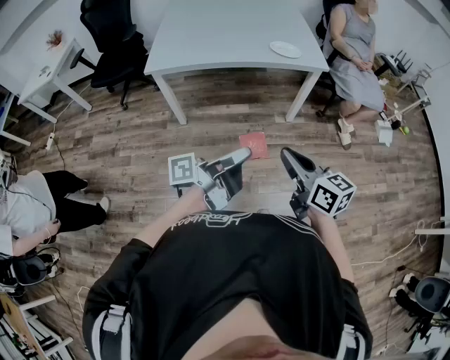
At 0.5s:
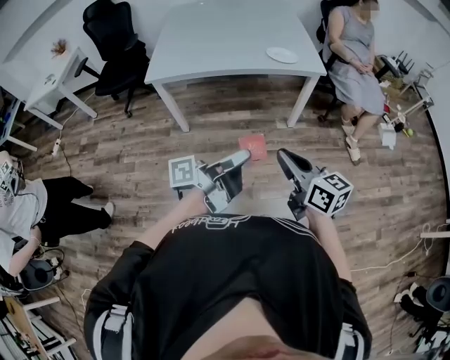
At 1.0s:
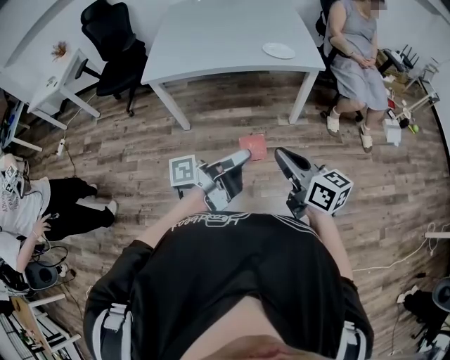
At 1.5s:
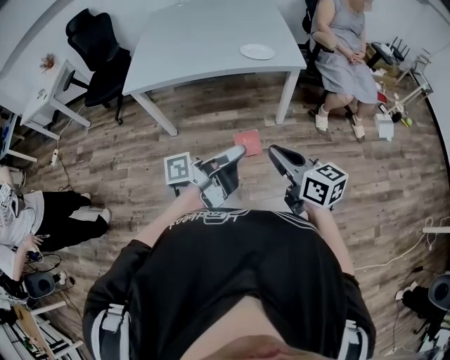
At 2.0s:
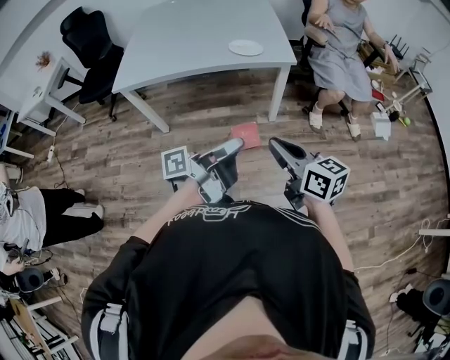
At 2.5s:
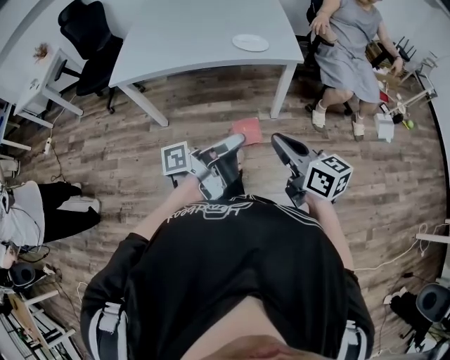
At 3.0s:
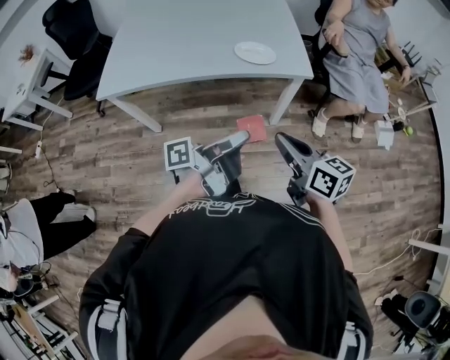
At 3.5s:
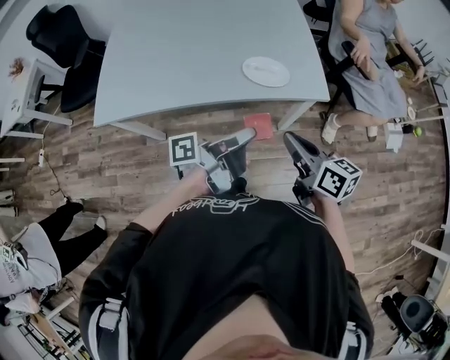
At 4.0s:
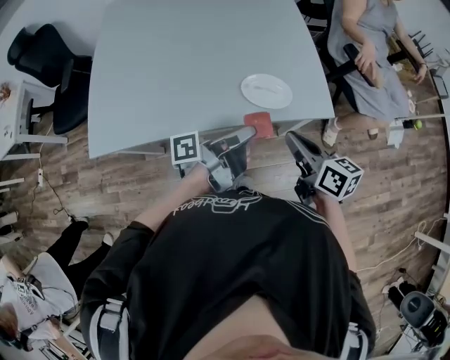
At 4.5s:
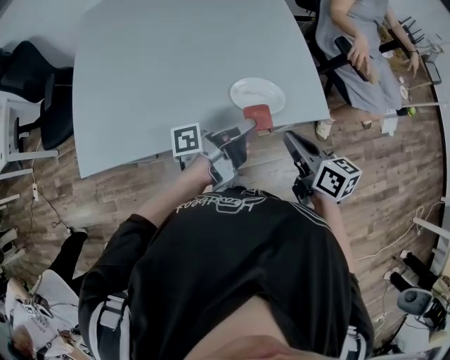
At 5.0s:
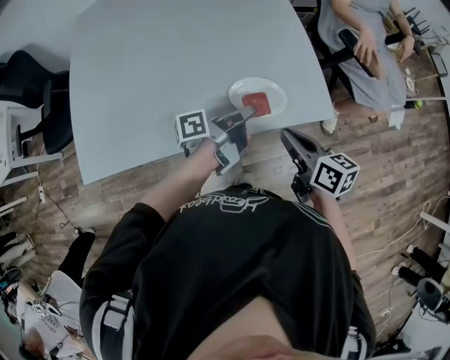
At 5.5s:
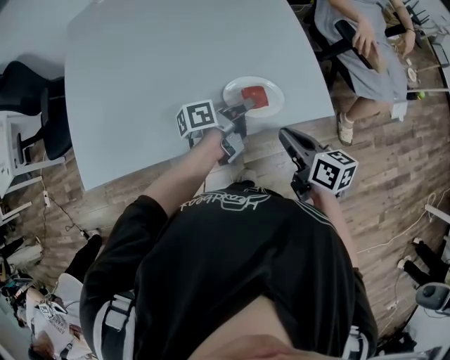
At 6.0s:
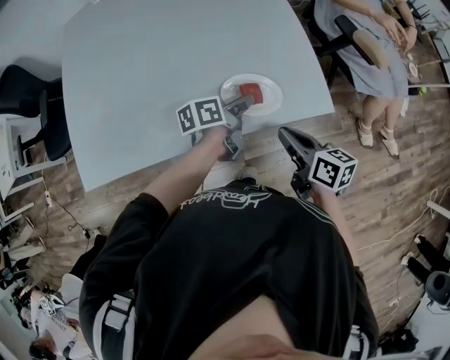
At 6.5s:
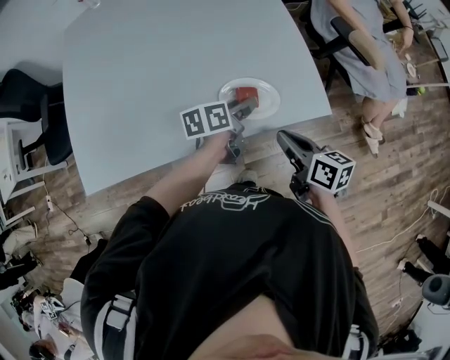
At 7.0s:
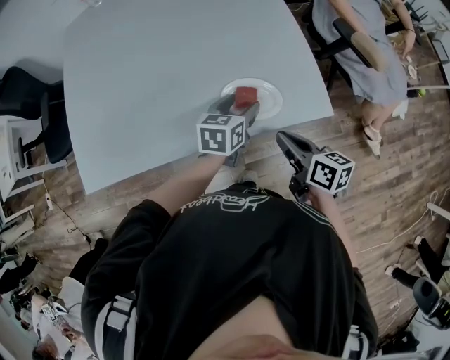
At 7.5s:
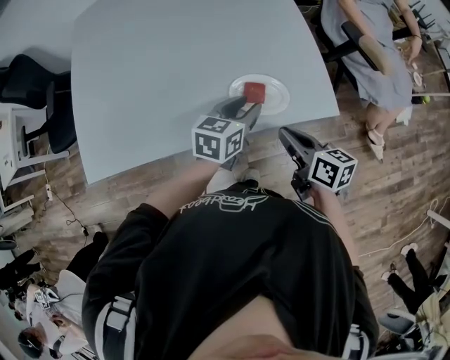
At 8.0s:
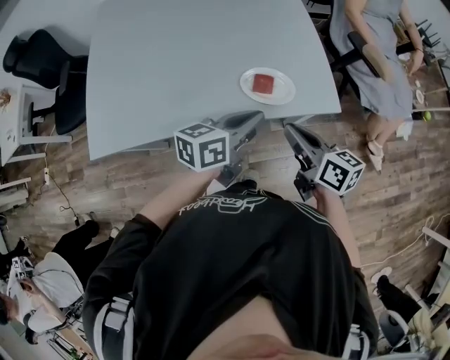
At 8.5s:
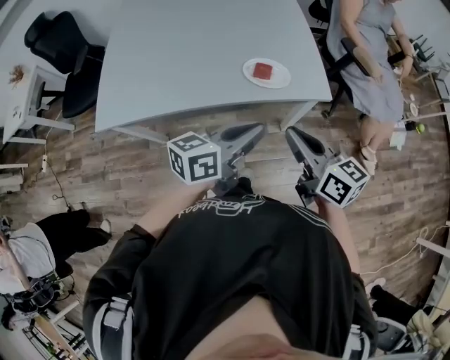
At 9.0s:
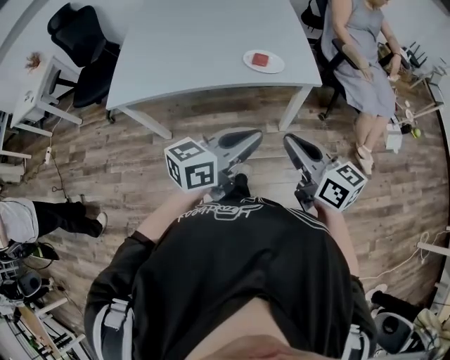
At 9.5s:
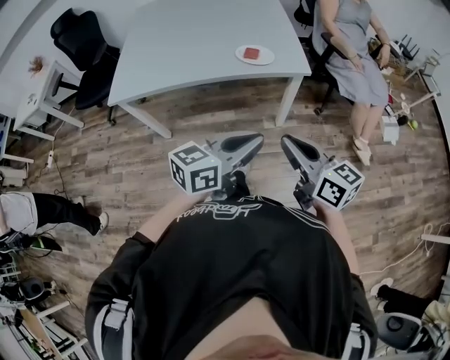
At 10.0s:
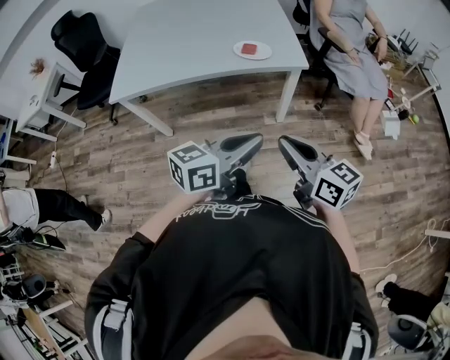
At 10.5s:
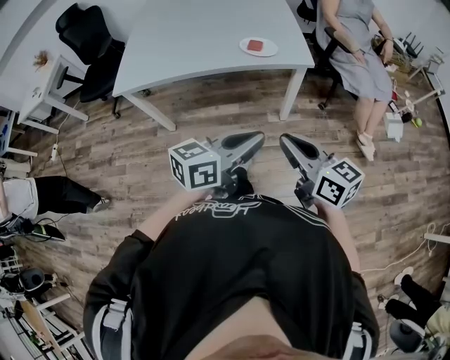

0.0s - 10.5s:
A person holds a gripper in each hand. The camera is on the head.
0.0s - 2.0s: Both grippers travel together to the right and forward, roughly 20 cm.
2.0s - 4.0s: The two grippers travel together, forward, roughly 40 cm.
4.0s - 6.5s: The right gripper shifts roughly 10 cm downward and forward. Meanwhile the left gripper goes roughly 20 cm forward and downward, points its fingers some 40 degrees further downward, and opens its fingers.
6.5s - 8.5s: The grippers both shift backward and upward by about 25 cm. The left gripper turns by about 30 degrees, and closes up. Meanwhile the right gripper turns by roughly 30 degrees.
8.5s - 10.5s: The two grippers go approximately 25 cm backward.

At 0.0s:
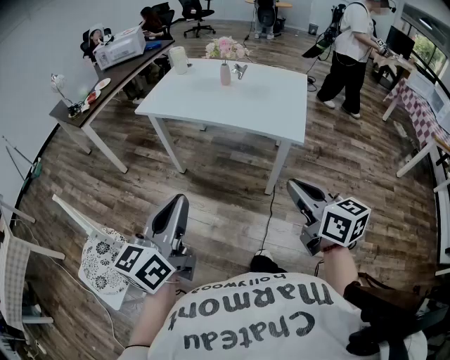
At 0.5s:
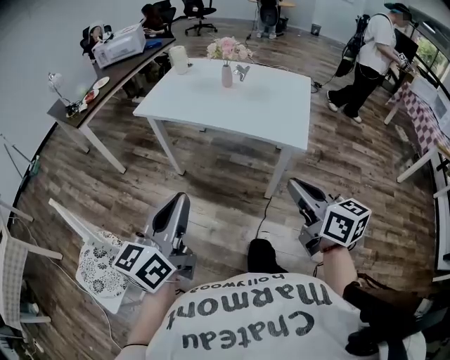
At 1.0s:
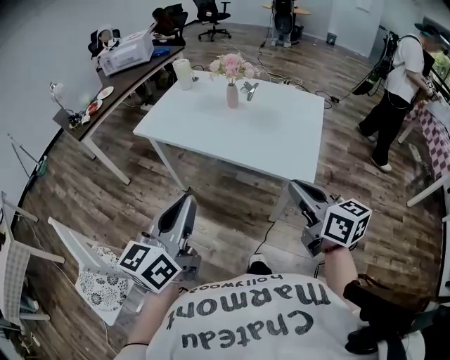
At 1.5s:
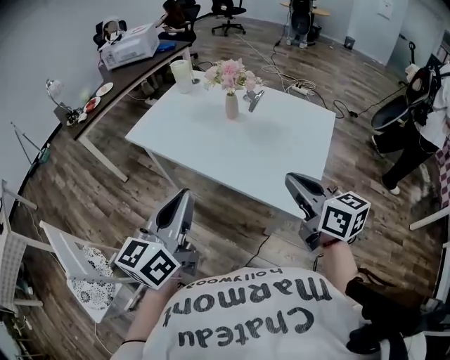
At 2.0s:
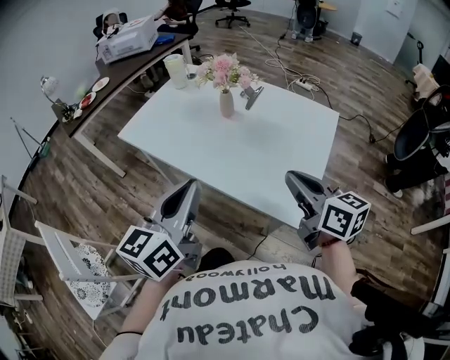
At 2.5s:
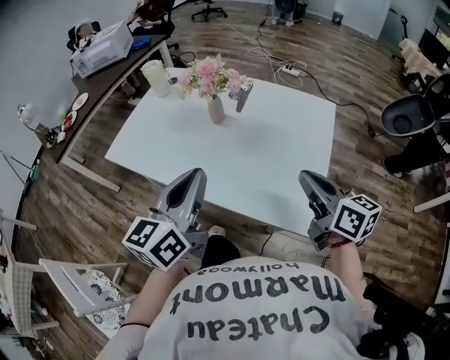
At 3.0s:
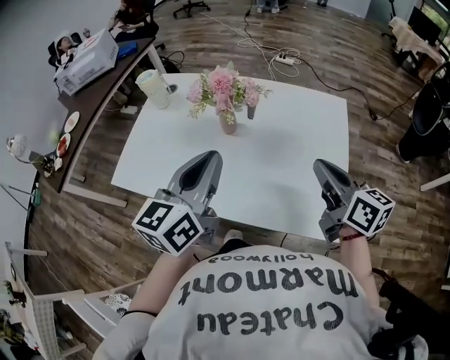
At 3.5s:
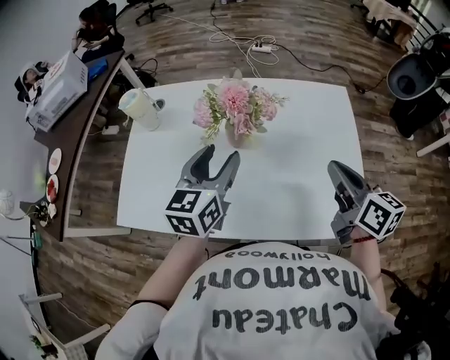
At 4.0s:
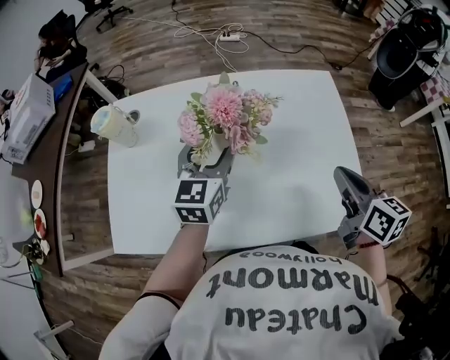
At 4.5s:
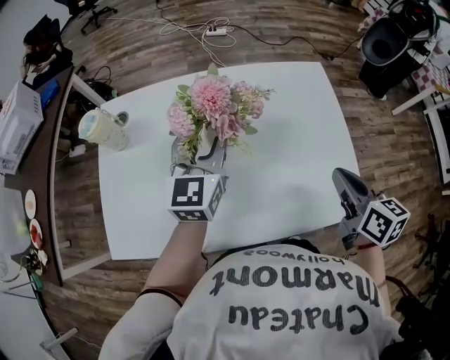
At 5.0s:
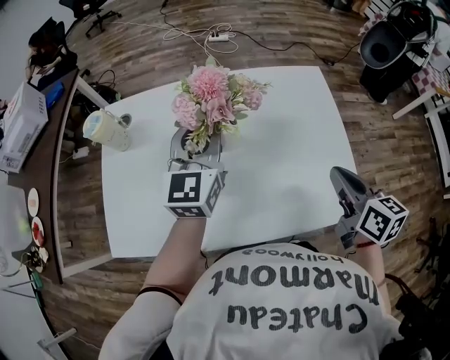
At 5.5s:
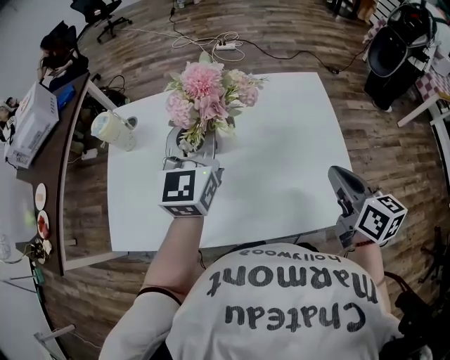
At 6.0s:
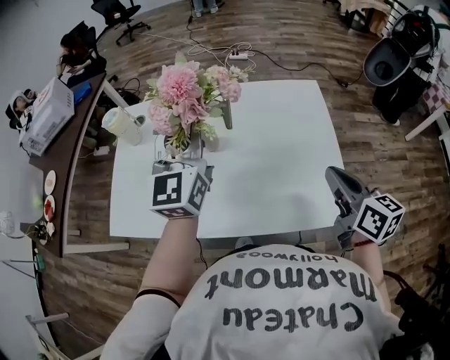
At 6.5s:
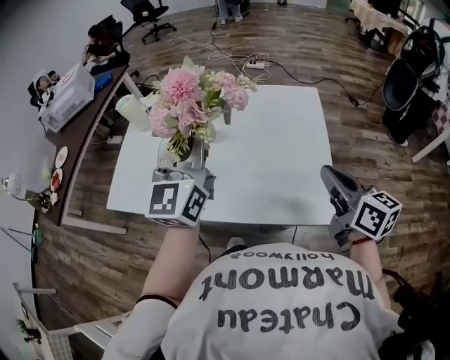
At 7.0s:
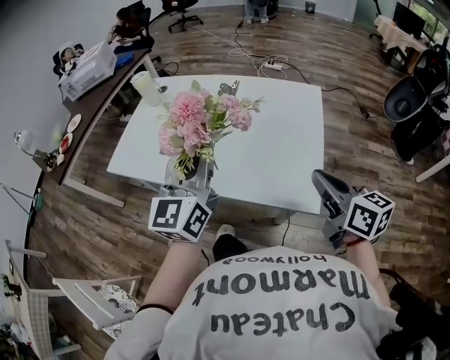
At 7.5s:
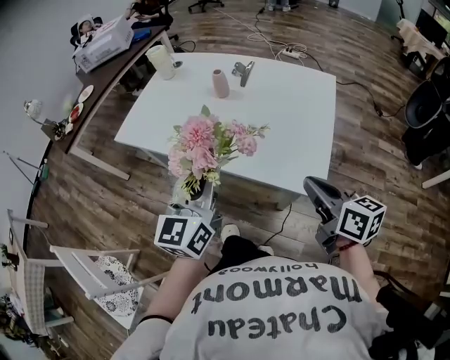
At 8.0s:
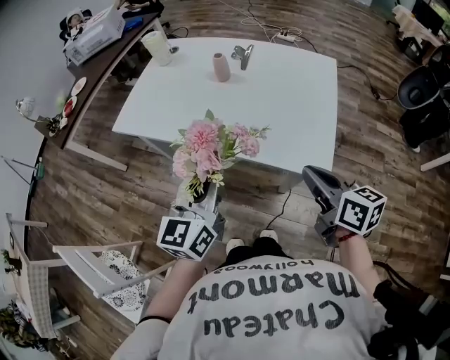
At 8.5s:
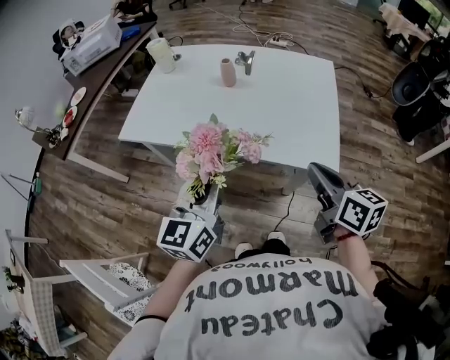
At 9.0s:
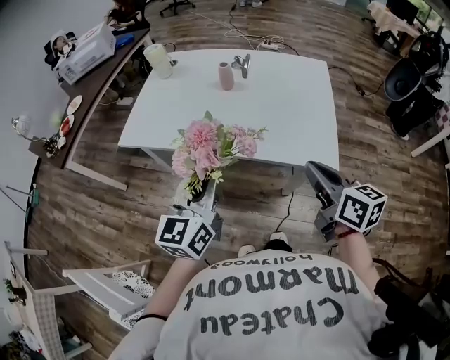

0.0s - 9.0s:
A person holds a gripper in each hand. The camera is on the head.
0.0s - 2.0s: The right gripper heads forward, covering some 35 cm. The left gripper travels forward and to the right by roughly 35 cm.
2.0s - 4.5s: The left gripper shifts by roughly 40 cm, changes its angle by roughly 30 degrees, and opens its fingers. The right gripper shifts by about 15 cm, and changes its angle by about 50 degrees.
4.5s - 7.0s: The right gripper changes place by about 15 cm, and changes its angle by approximately 30 degrees; the left gripper changes place by approximately 30 cm, rotates approximately 20 degrees, and closes its fingers.
7.0s - 9.0s: The right gripper moves to the left and backward, approximately 15 cm, while the left gripper heads to the left, backward and downward, covering roughly 20 cm.

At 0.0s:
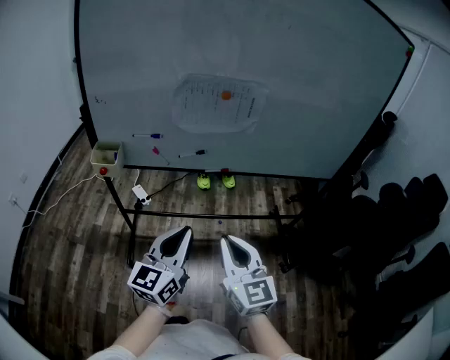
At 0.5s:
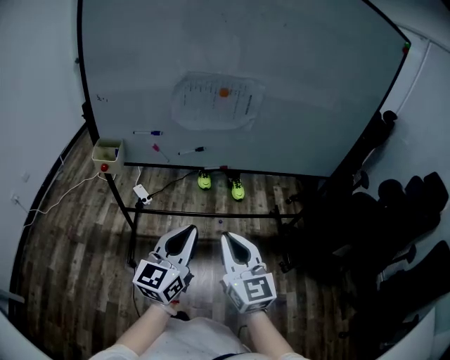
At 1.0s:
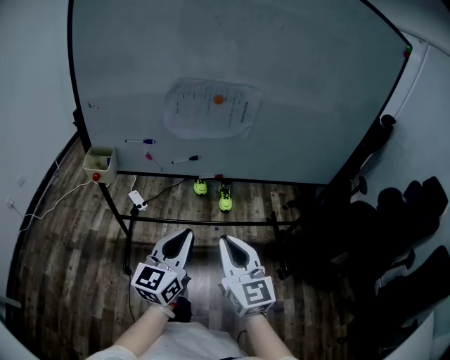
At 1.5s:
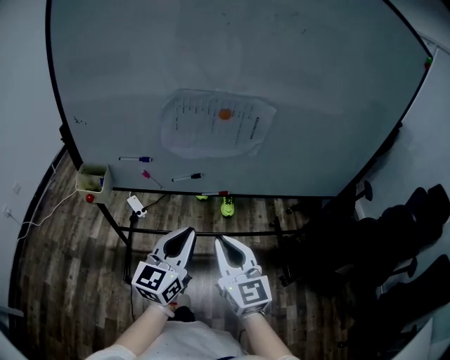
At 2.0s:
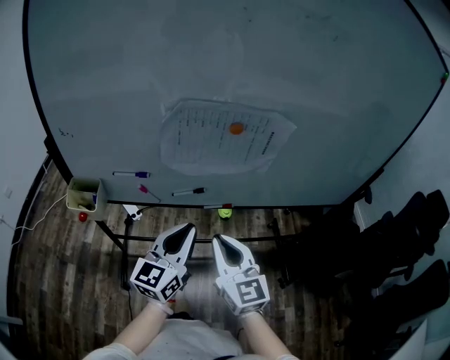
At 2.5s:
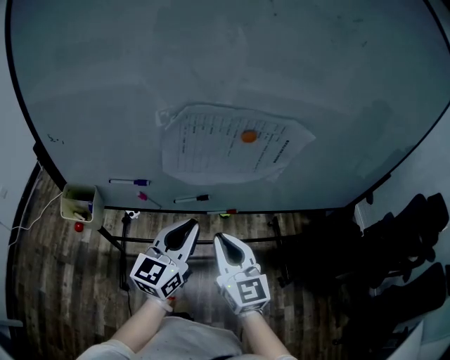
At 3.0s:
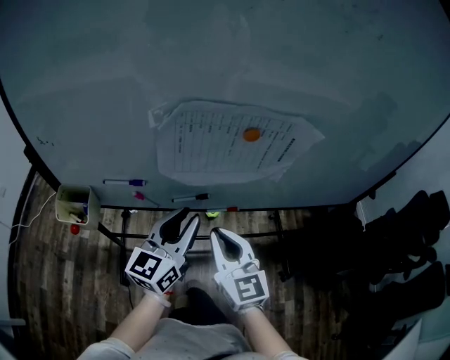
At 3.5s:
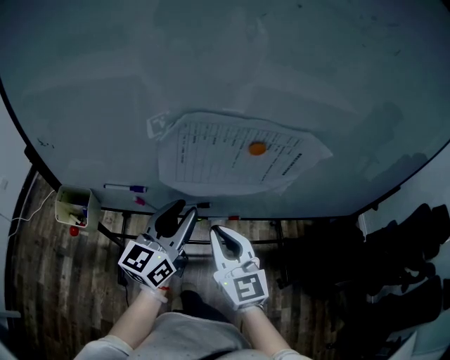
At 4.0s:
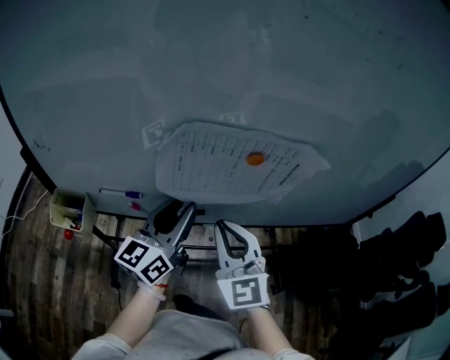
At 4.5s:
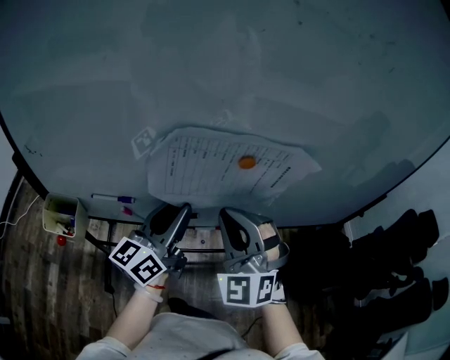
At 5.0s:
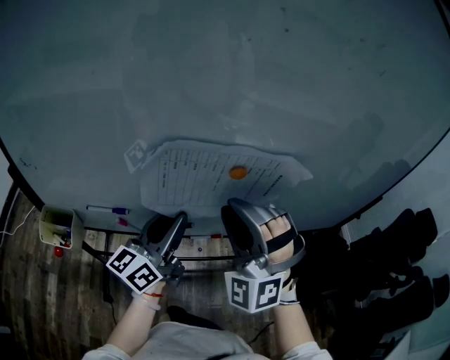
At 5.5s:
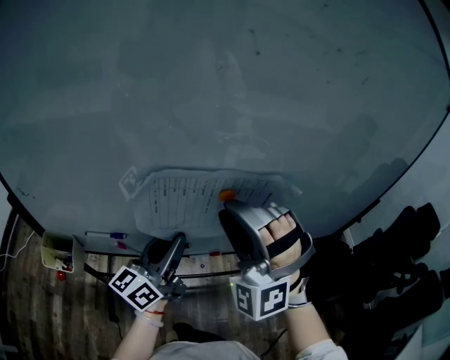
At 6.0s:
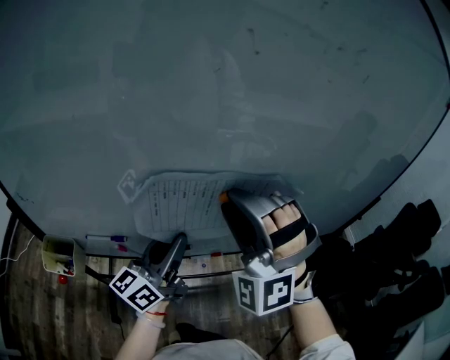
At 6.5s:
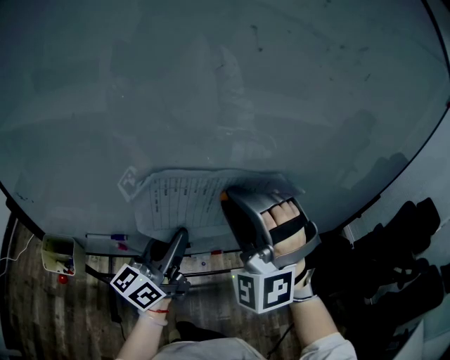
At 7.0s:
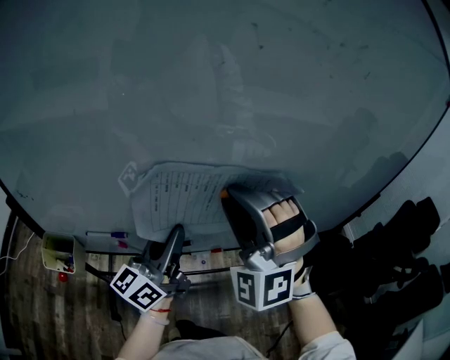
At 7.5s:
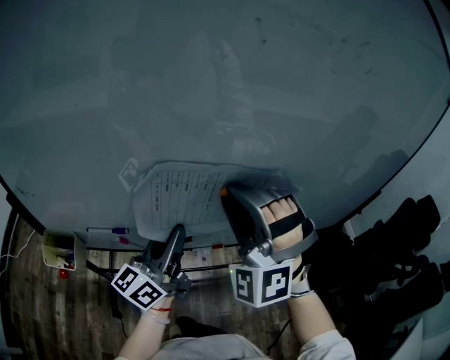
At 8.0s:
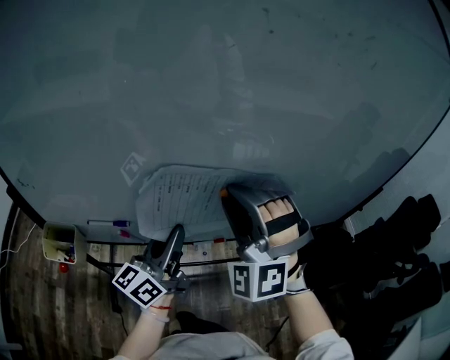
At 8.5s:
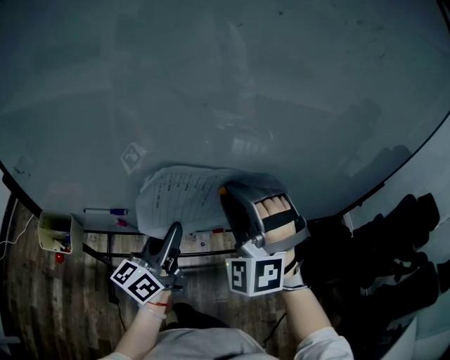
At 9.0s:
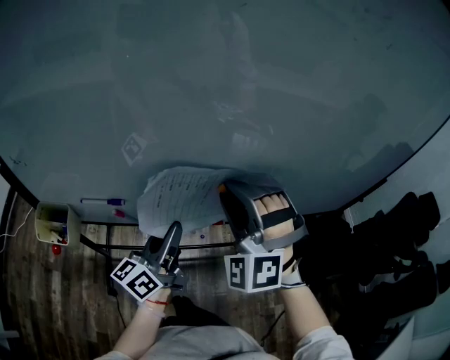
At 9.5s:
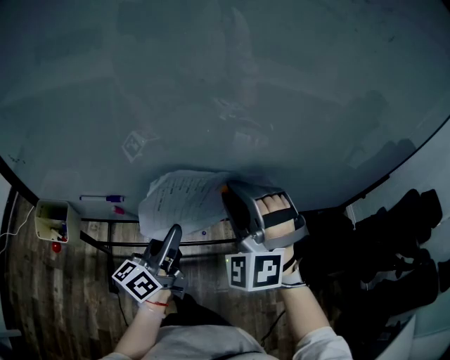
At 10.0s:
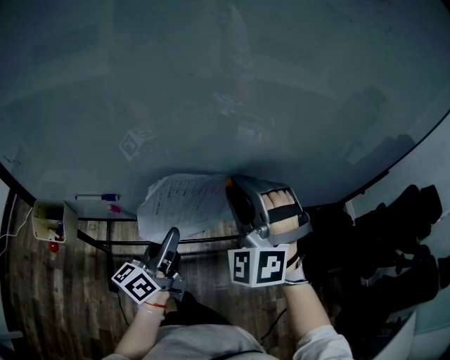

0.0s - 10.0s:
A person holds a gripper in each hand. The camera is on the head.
0.0s - 2.0s: The two grippers go approximately 20 cm forward.
2.0s - 4.0s: Both grippers move forward, about 15 cm. The right gripper changes its angle by about 30 degrees. The left gripper opens its fingers.
4.0s - 6.0s: The right gripper heads upward and forward, covering some 15 cm, rolls counterclockwise, seen from behind, by approximately 60 degrees, and opens up.
6.0s - 8.0s: The left gripper closes up.
8.0s - 10.0s: The left gripper heads downward, covering approximately 10 cm, while the right gripper goes roughly 5 cm downward.
